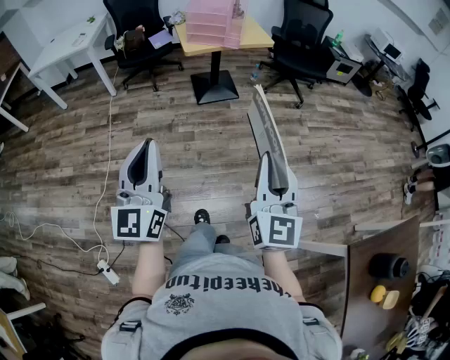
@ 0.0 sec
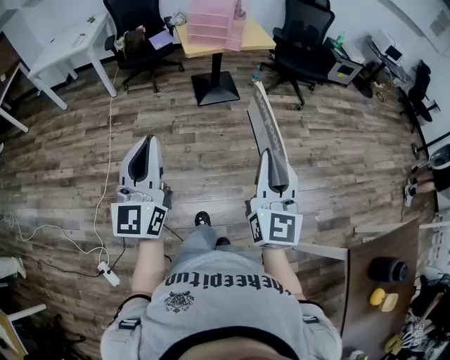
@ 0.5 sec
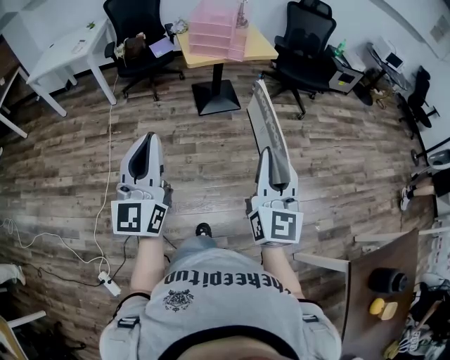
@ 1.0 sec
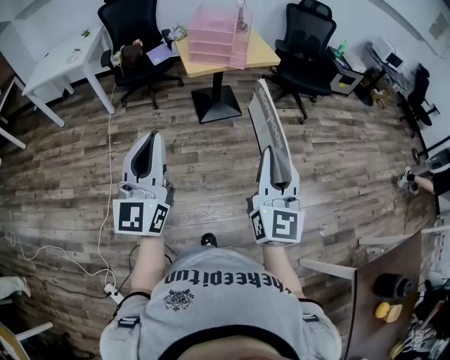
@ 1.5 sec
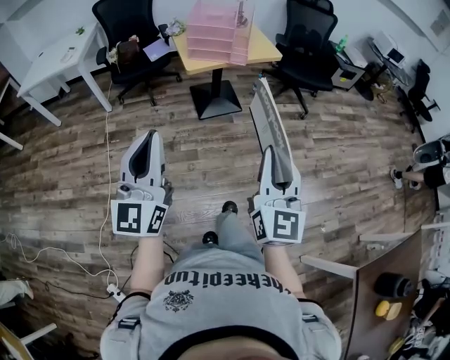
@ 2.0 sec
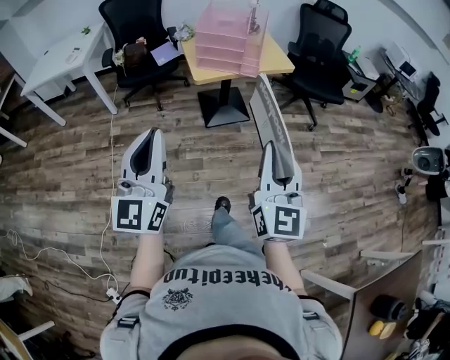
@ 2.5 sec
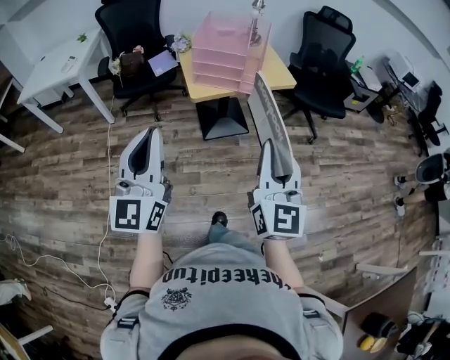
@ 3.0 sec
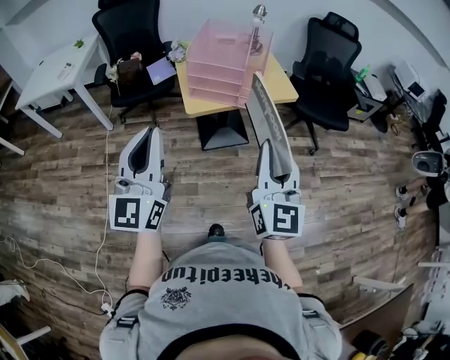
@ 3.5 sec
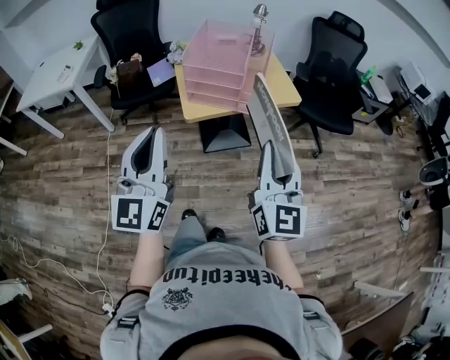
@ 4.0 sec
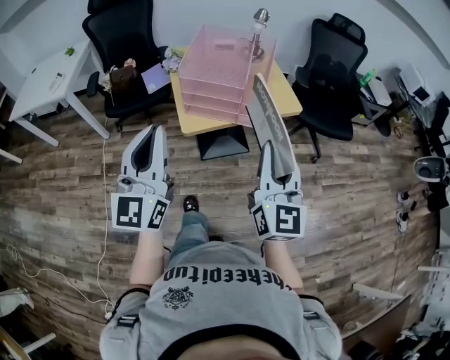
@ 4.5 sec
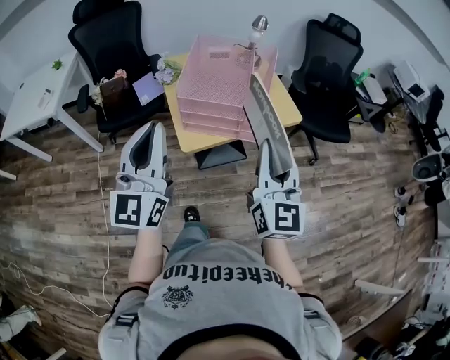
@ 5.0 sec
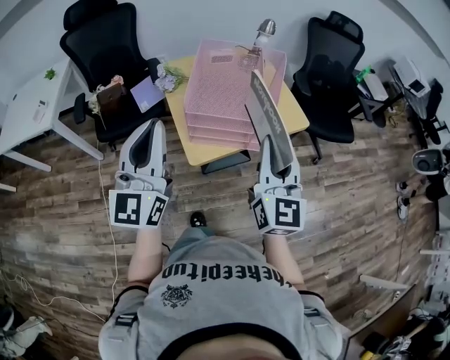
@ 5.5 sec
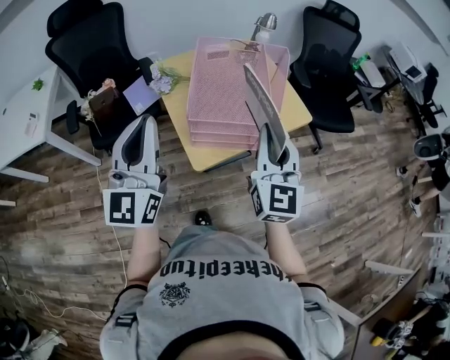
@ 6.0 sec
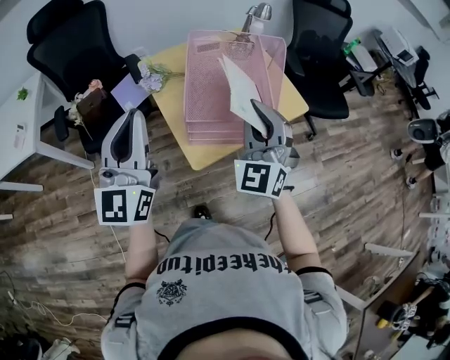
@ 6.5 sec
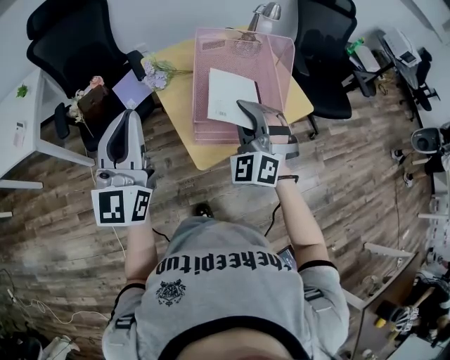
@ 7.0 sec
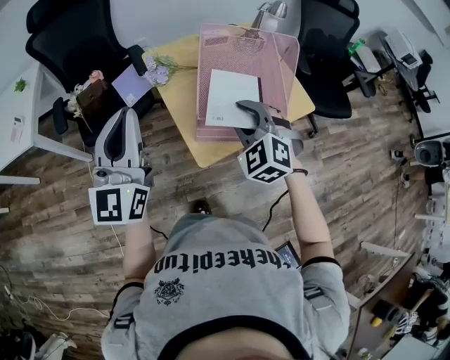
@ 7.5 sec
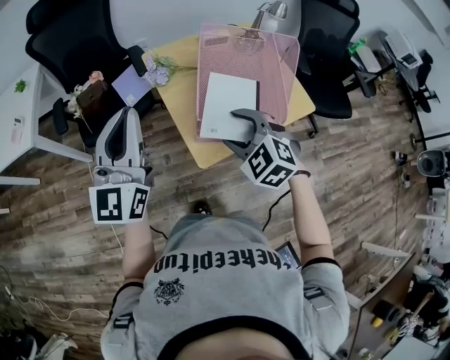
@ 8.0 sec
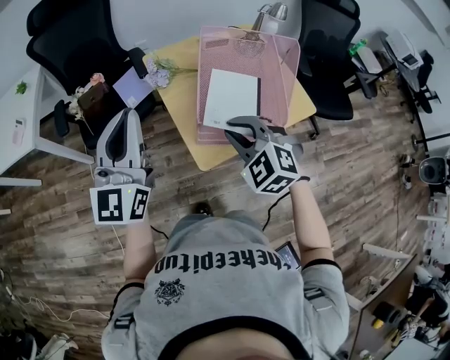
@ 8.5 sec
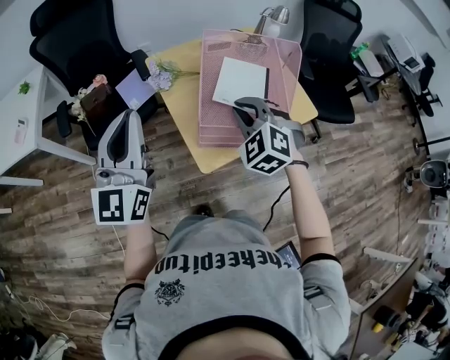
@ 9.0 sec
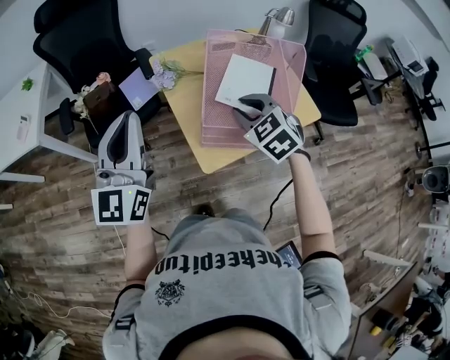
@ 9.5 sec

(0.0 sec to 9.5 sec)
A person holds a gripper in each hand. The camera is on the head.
0.0 sec - 2.0 sec: Both grippers move forward, some 20 cm.
2.0 sec - 4.0 sec: The grippers both shift forward by approximately 35 cm.
4.0 sec - 5.5 sec: The left gripper travels forward by about 25 cm. The right gripper shifts about 25 cm forward and to the left.
5.5 sec - 7.5 sec: The left gripper moves to the left and forward, about 15 cm. Meanwhile the right gripper heads forward, to the left and downward, covering roughly 25 cm, tips its fingers downward by some 40 degrees, and opens.
7.5 sec - 9.5 sec: The right gripper opens, then closes again.

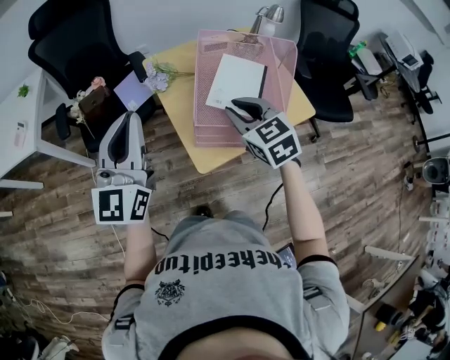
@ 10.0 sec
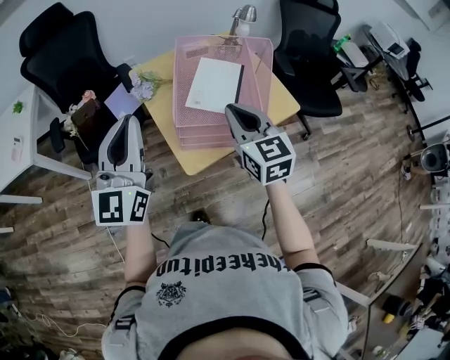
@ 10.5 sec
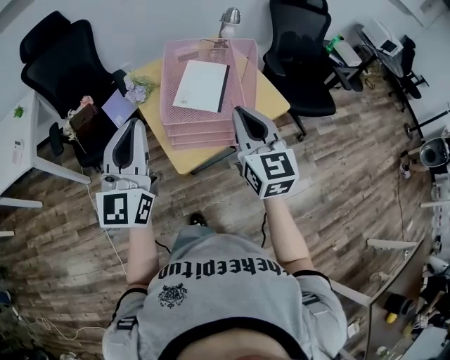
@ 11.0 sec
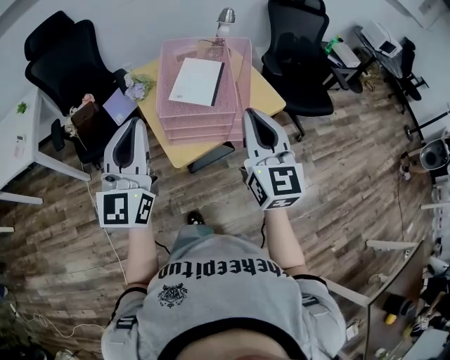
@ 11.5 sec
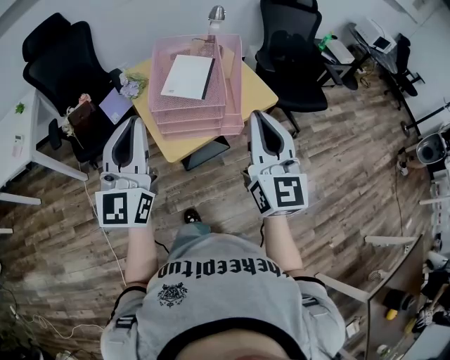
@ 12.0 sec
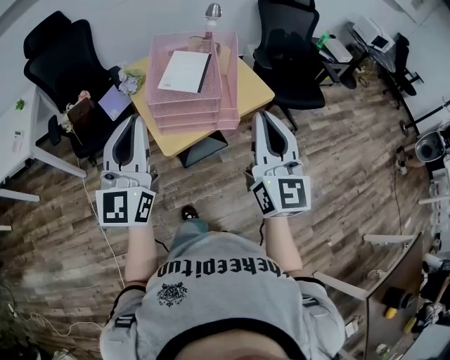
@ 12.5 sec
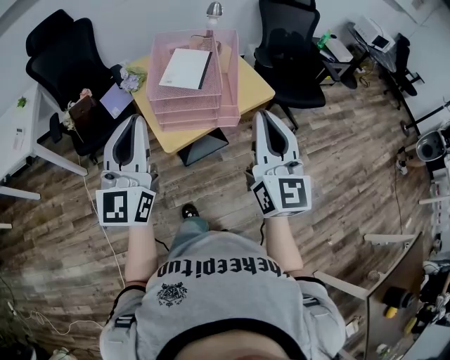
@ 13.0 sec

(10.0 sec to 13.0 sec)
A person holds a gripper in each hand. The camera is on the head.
10.0 sec - 11.5 sec: The right gripper shifts roughly 25 cm backward, upward and to the right, and points its fingers roughly 30 degrees further upward. The left gripper goes approximately 15 cm to the right and backward.
11.5 sec - 13.0 sec: The left gripper moves backward, about 5 cm. The right gripper moves backward and to the right, about 10 cm.

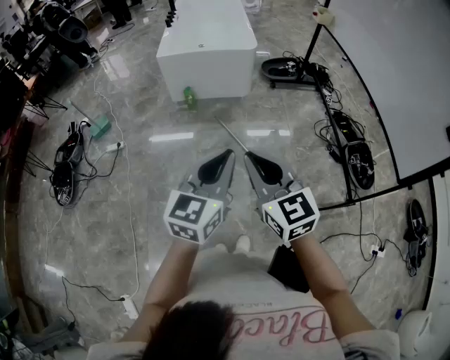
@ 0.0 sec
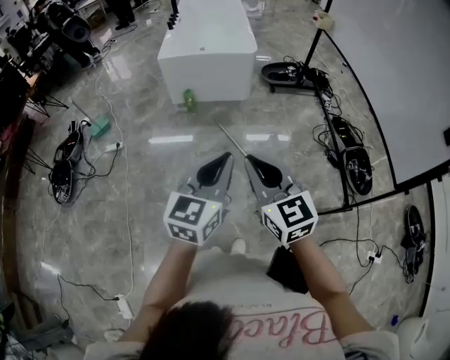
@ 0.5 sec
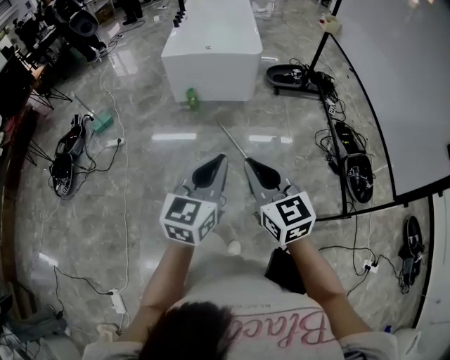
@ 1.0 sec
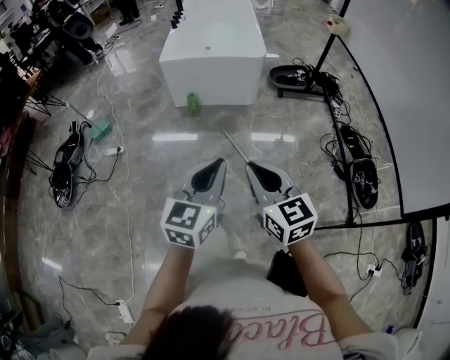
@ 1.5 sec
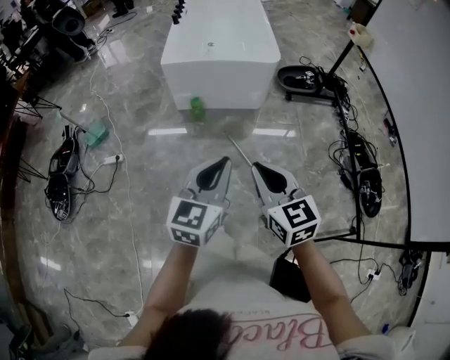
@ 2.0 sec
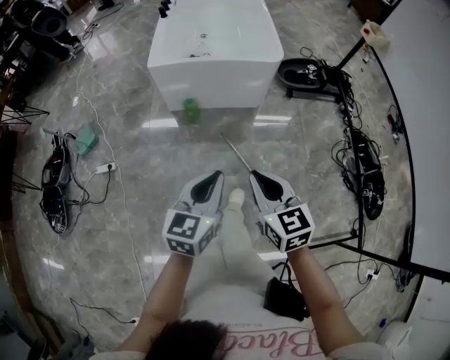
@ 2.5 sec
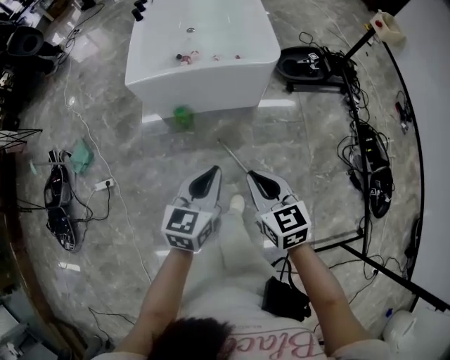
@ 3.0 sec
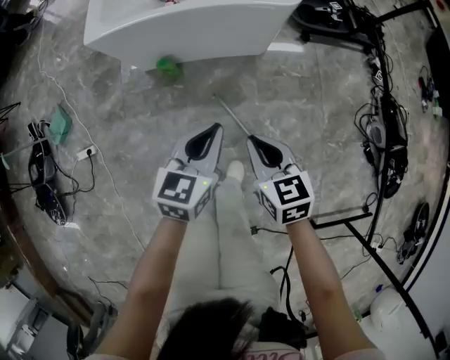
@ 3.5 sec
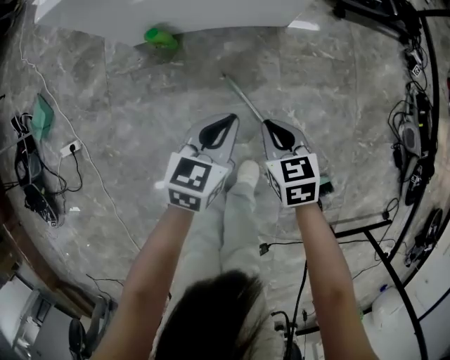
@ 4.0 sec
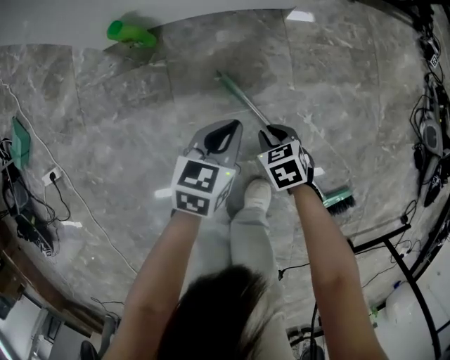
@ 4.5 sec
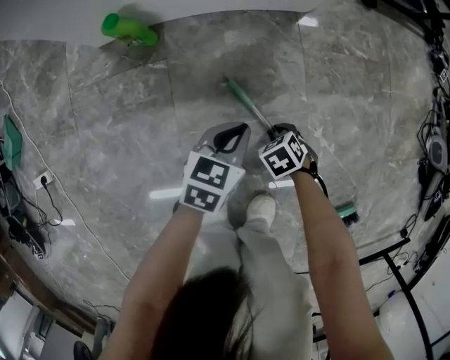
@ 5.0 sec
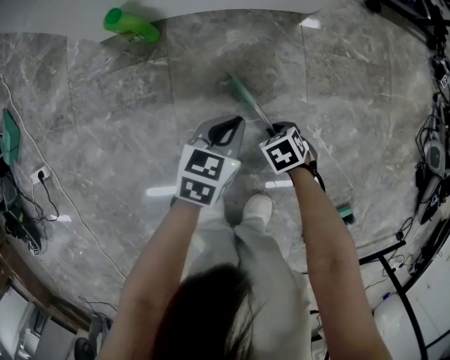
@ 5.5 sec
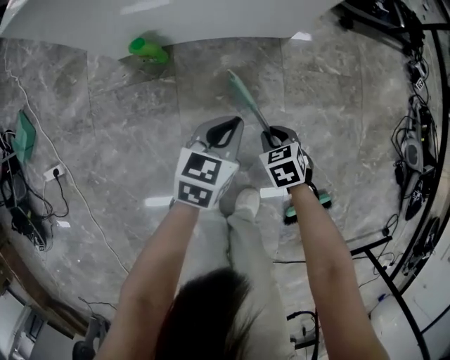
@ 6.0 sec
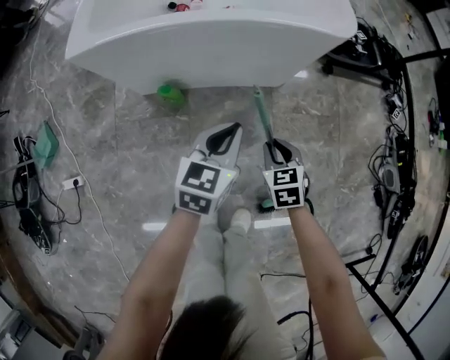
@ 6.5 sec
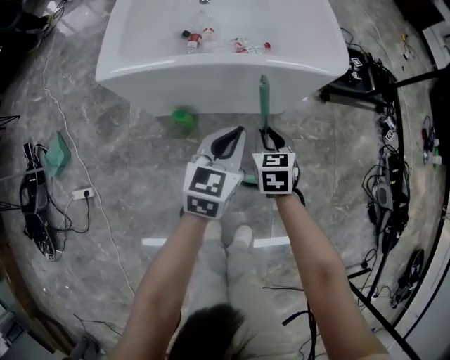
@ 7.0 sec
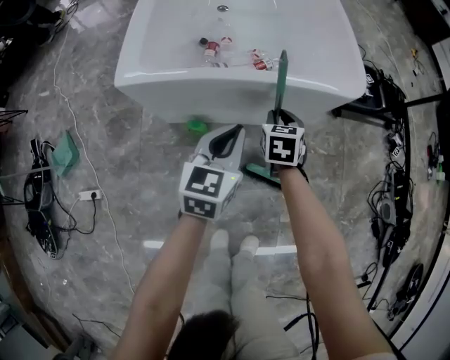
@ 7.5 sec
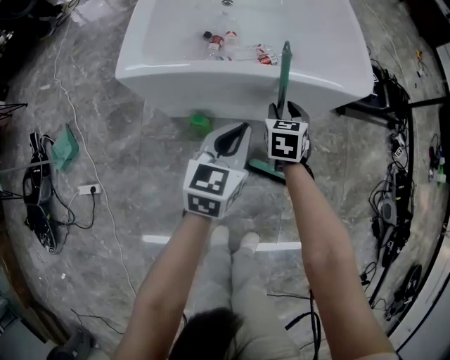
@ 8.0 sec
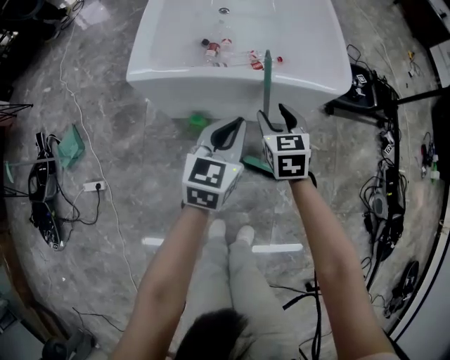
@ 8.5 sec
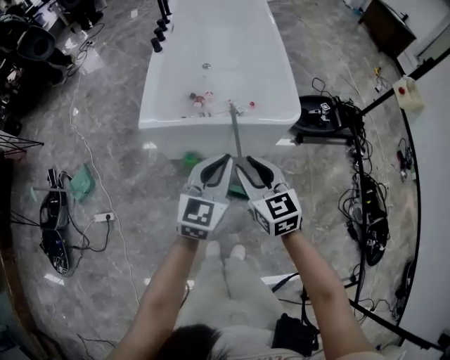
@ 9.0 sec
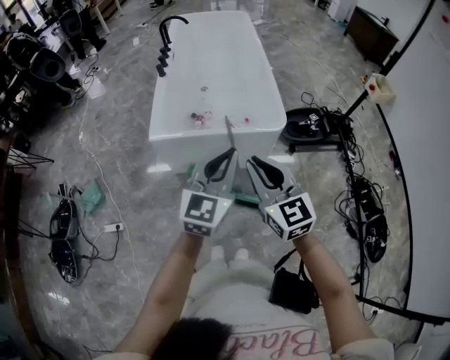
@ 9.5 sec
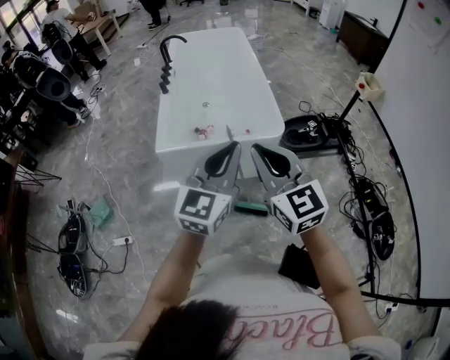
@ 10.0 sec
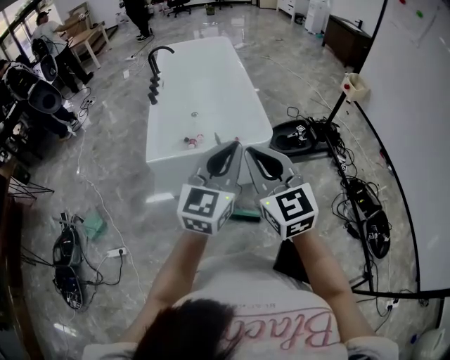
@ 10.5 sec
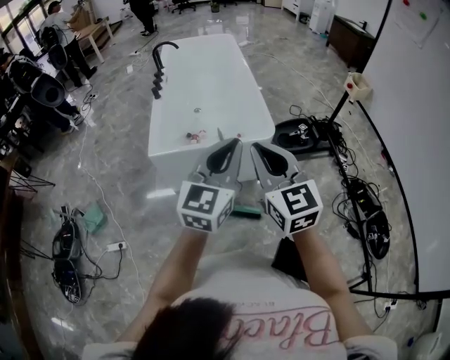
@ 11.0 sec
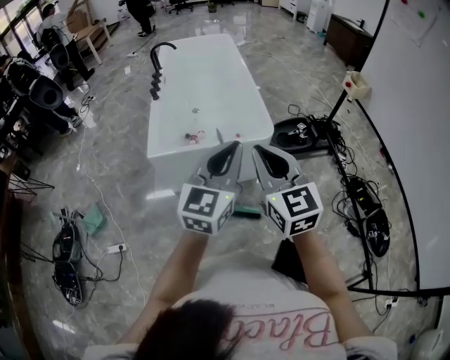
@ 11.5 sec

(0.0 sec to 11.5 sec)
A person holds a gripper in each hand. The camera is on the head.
0.0 sec - 2.0 sec: The grippers both shift forward by some 20 cm.
2.0 sec - 4.0 sec: Both grippers travel together downward and forward, about 50 cm. The left gripper changes its angle by approximately 30 degrees; the right gripper tips its fingers downward by roughly 30 degrees.
4.0 sec - 6.0 sec: The right gripper travels downward by some 20 cm, and rotates roughly 20 degrees. Meanwhile the left gripper moves downward, about 10 cm.
6.0 sec - 7.5 sec: The right gripper travels forward and upward by some 35 cm, and turns by roughly 30 degrees. Meanwhile the left gripper shifts roughly 30 cm upward, forward and to the left, and turns by approximately 20 degrees.
7.5 sec - 9.5 sec: The left gripper shifts roughly 35 cm upward, and rotates about 30 degrees; the right gripper moves upward and backward, roughly 50 cm, points its fingers approximately 40 degrees further upward, and opens, then closes again.
9.5 sec - 11.5 sec: The two grippers go roughly 5 cm upward.

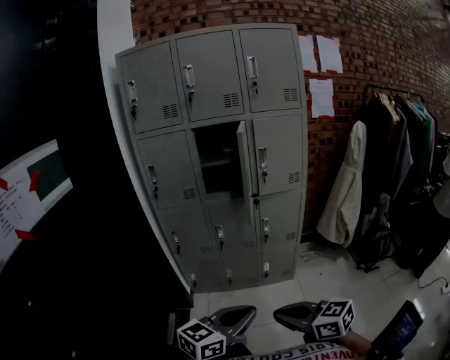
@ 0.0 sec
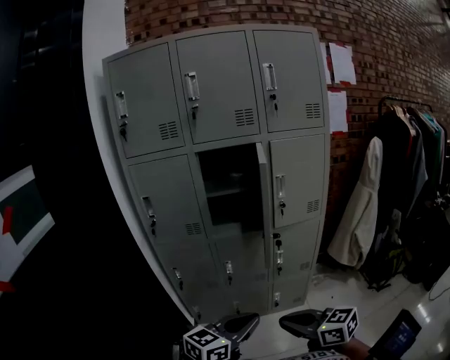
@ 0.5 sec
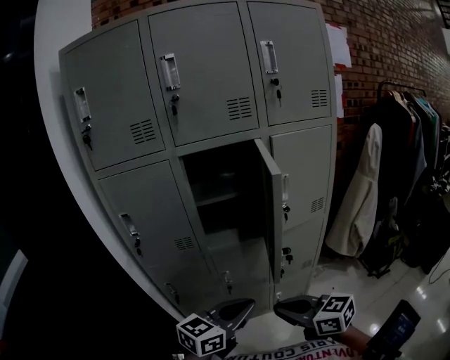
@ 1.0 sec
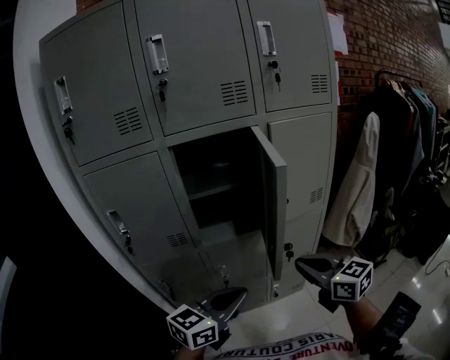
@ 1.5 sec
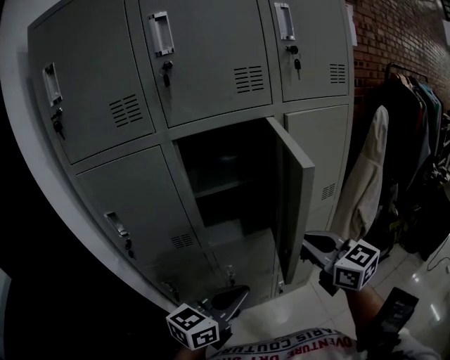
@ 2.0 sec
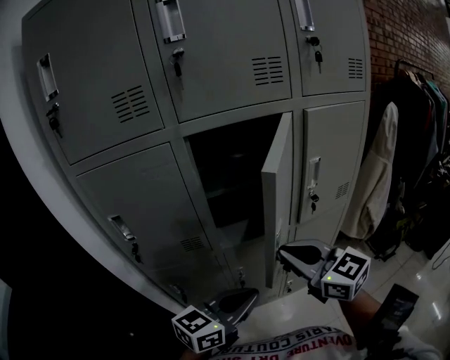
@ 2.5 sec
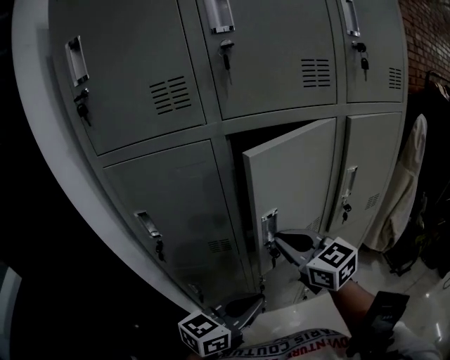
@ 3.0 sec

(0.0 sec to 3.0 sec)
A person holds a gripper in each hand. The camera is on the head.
0.0 sec - 1.5 sec: Both grippers travel together forward, approximately 40 cm. The right gripper turns by approximately 30 degrees.
1.5 sec - 3.0 sec: The left gripper moves to the left and forward, some 10 cm, while the right gripper is displaced to the left and forward by roughly 25 cm.
